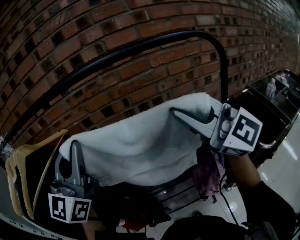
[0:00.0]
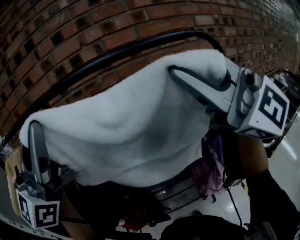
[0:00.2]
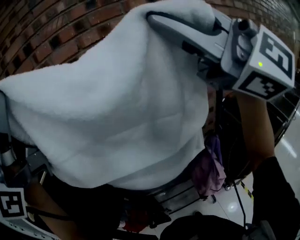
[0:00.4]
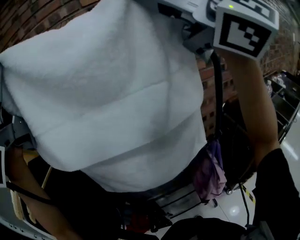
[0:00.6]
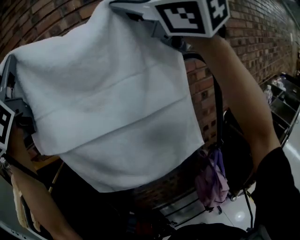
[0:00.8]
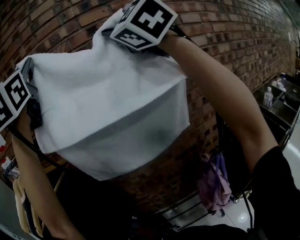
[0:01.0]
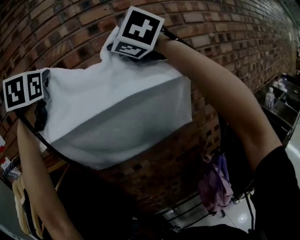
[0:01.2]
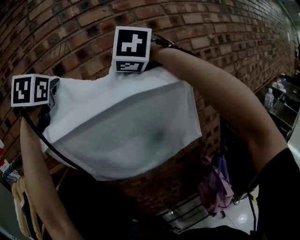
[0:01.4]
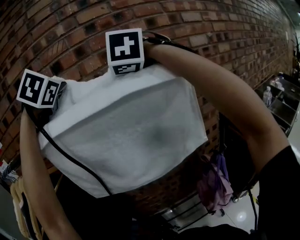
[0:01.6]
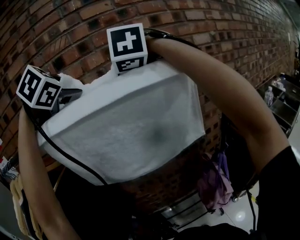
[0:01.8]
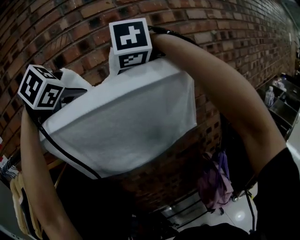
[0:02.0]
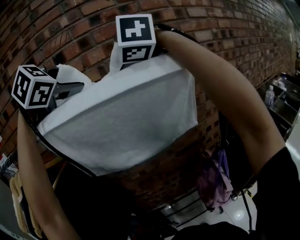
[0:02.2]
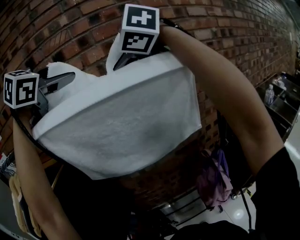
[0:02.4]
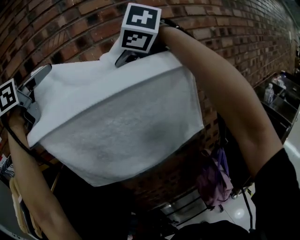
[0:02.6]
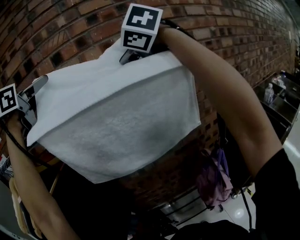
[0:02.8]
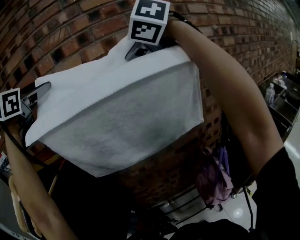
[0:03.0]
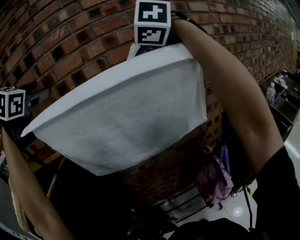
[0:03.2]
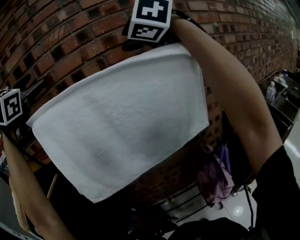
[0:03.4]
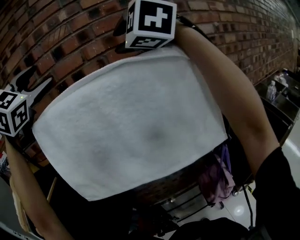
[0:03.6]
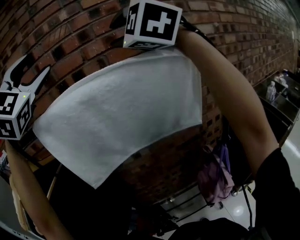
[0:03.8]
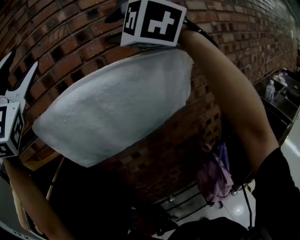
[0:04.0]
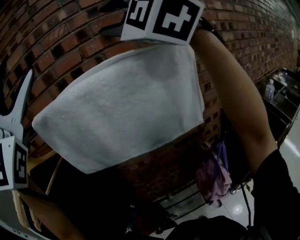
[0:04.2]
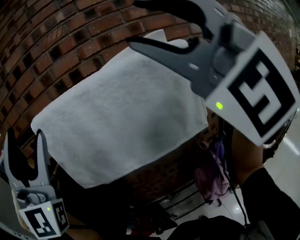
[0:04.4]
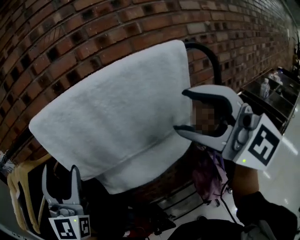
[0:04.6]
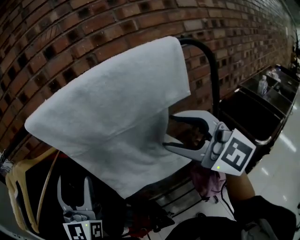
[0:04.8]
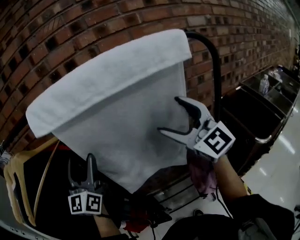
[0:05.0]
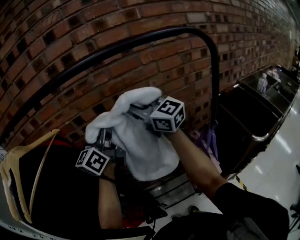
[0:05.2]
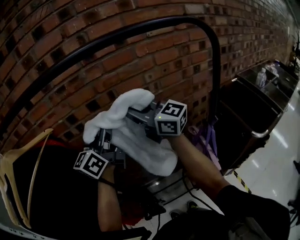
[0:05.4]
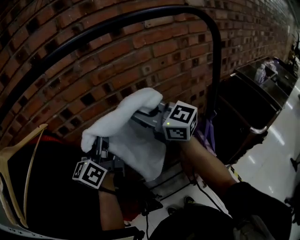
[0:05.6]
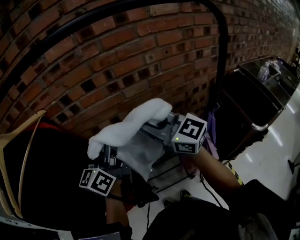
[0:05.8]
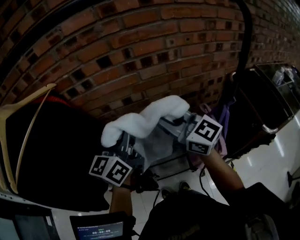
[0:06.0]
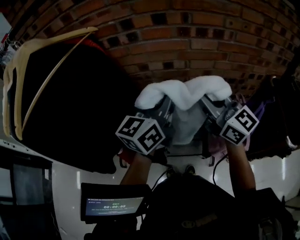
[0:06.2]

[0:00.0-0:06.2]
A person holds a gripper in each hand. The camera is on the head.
0:00.0 to 0:01.6: The grippers both shift forward and upward by about 25 cm. The right gripper tips its fingers downward by approximately 40 degrees. The left gripper tips its fingers downward by about 40 degrees.
0:01.6 to 0:03.2: The left gripper moves to the left, roughly 10 cm, and opens. Meanwhile the right gripper opens its fingers.
0:03.2 to 0:04.6: The right gripper goes about 30 cm backward, and tips its fingers upward by roughly 50 degrees; the left gripper travels backward and downward by some 30 cm, and points its fingers approximately 40 degrees further upward.
0:04.6 to 0:06.2: The left gripper heads downward and to the right, covering about 25 cm, rolls counterclockwise, seen from behind, by about 60 degrees, and closes; the right gripper shifts roughly 25 cm downward and forward, twists approximately 50 degrees clockwise, seen from behind, and closes its fingers.

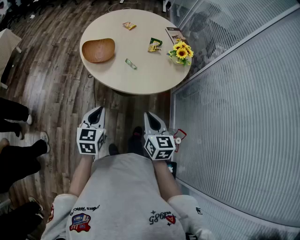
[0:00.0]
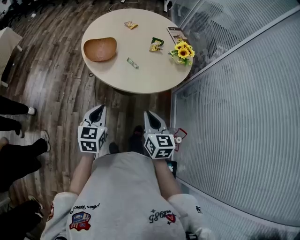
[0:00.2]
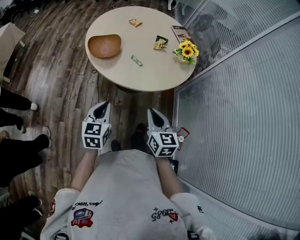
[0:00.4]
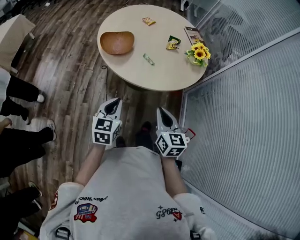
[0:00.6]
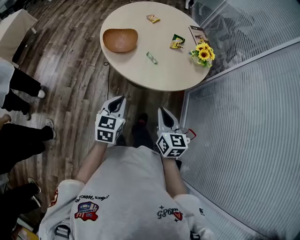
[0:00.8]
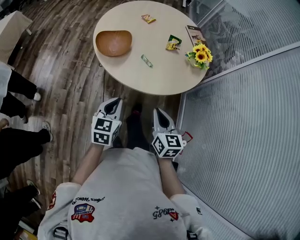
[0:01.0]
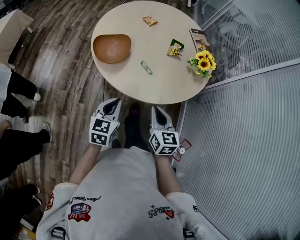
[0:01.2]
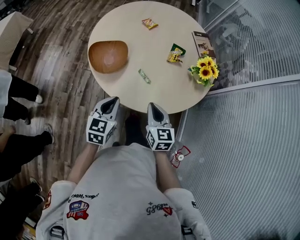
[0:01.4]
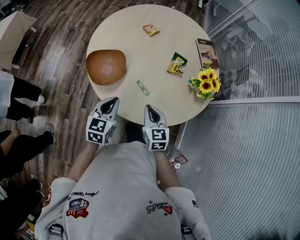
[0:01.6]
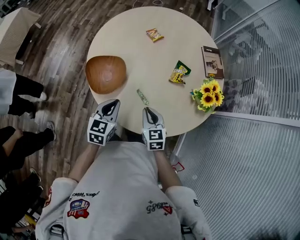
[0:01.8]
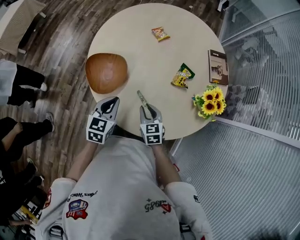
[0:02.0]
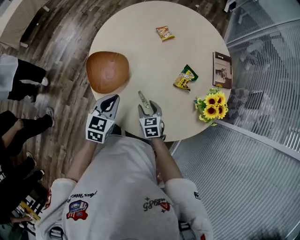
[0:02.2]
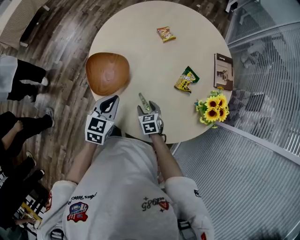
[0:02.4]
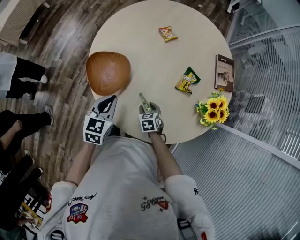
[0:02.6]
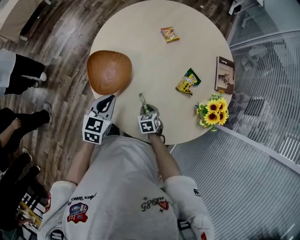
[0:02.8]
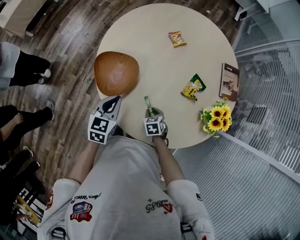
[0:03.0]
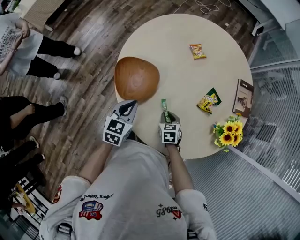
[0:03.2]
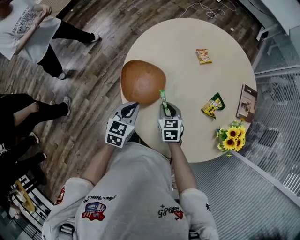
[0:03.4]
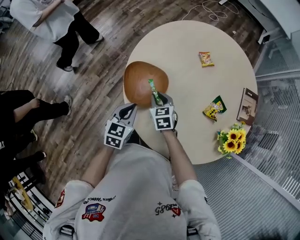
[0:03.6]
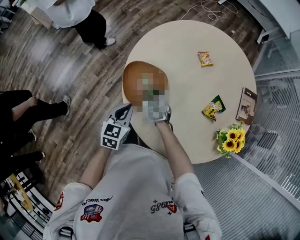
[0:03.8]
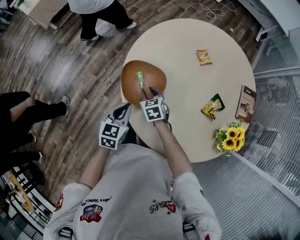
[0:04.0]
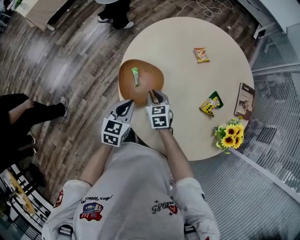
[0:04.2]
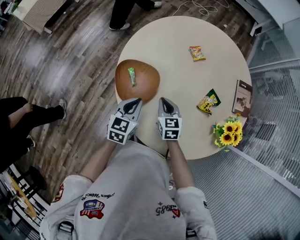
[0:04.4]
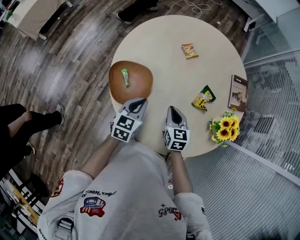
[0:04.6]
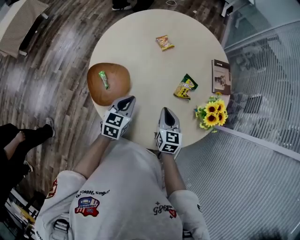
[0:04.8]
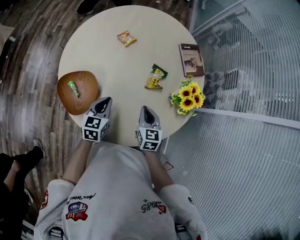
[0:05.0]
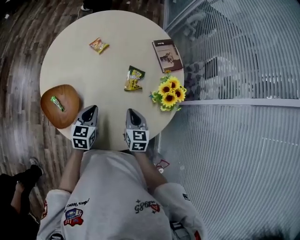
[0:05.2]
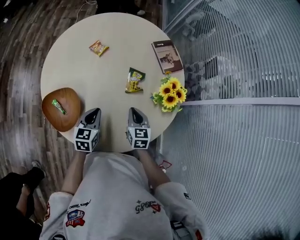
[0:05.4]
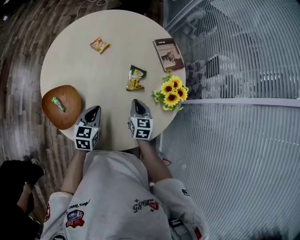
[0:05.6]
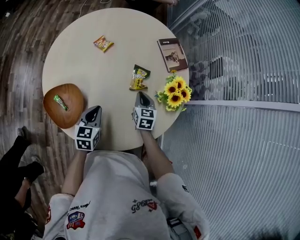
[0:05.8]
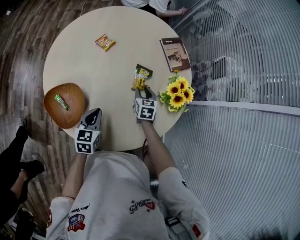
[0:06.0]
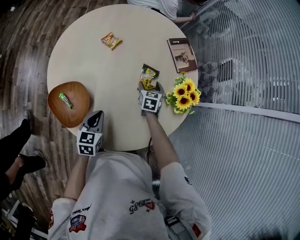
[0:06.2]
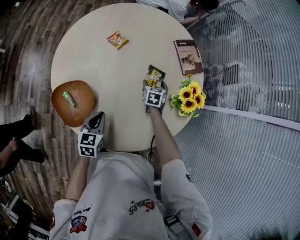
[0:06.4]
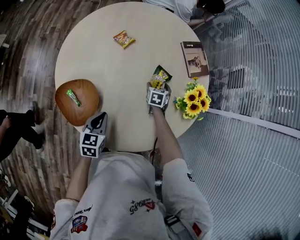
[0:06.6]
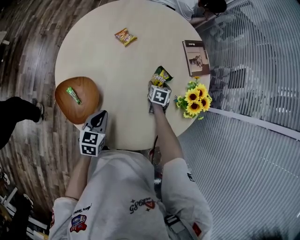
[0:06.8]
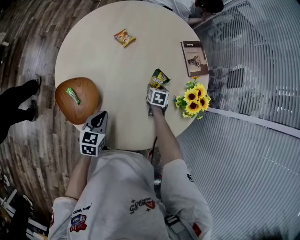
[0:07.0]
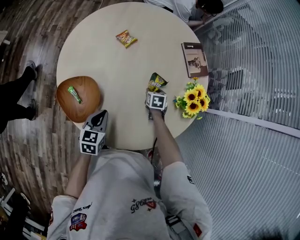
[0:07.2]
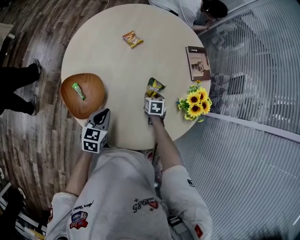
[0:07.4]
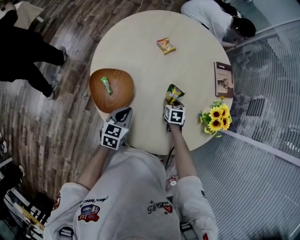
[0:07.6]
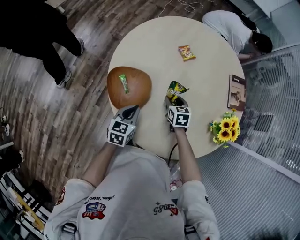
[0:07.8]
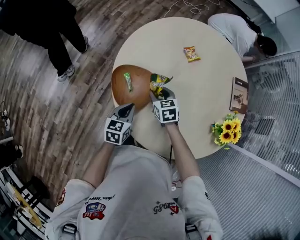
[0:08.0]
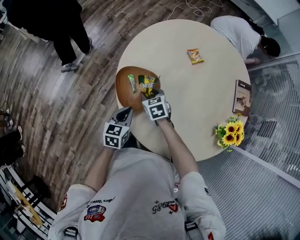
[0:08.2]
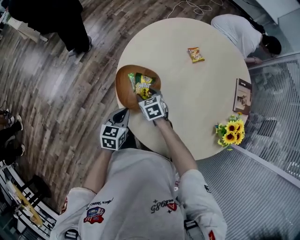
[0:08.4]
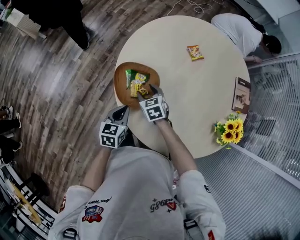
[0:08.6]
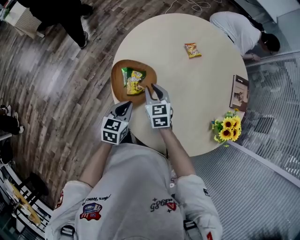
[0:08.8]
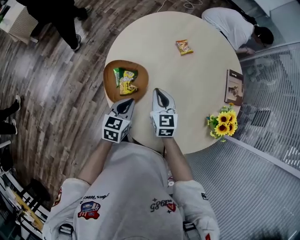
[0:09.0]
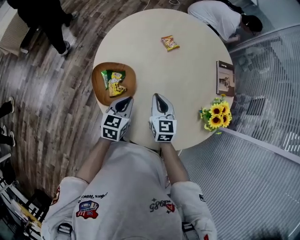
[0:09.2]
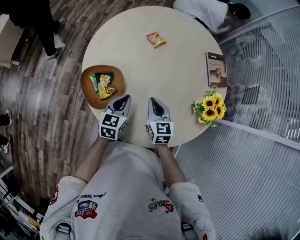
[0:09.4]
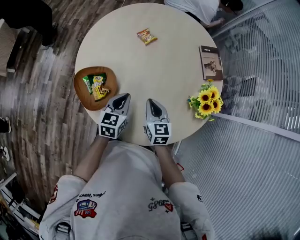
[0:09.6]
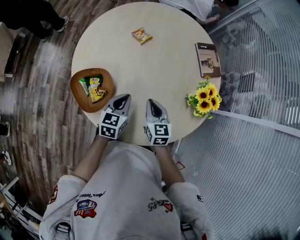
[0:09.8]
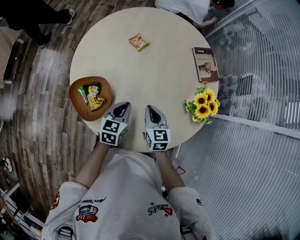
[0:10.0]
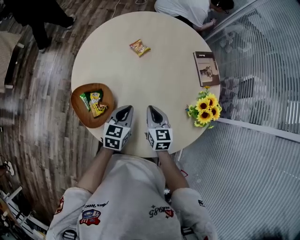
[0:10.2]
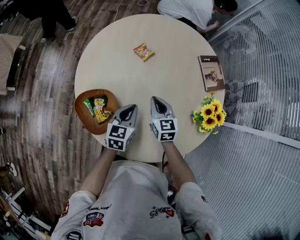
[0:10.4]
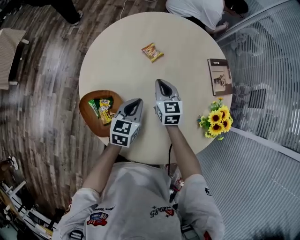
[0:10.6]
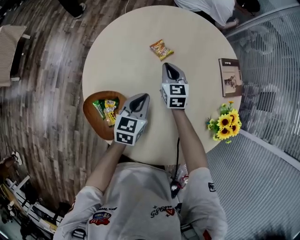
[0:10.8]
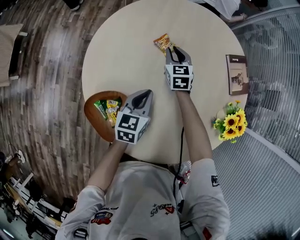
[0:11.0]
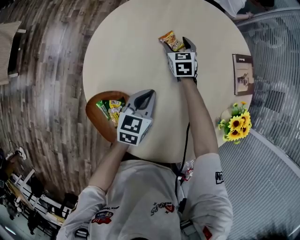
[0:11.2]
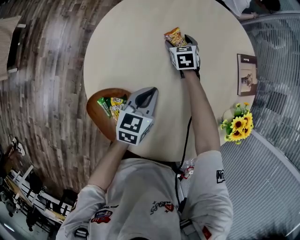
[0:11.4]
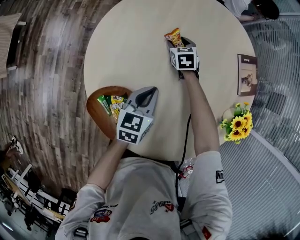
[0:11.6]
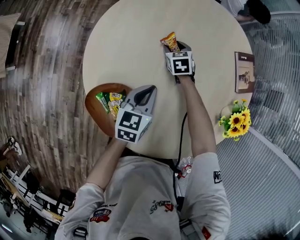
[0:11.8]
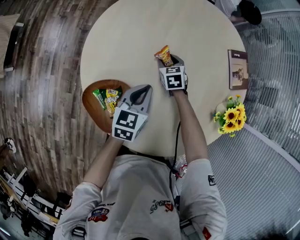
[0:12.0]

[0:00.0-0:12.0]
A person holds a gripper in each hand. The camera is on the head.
0:00.0 to 0:01.6: The grippers both shift forward by roughly 30 cm.
0:01.6 to 0:03.0: The left gripper is displaced forward by about 10 cm. Meanwhile the right gripper travels downward and forward by some 25 cm, points its fingers about 40 degrees further downward, and opens, then closes once more.
0:03.0 to 0:04.4: The right gripper travels upward and forward by approximately 20 cm, and swivels roughly 30 degrees.
0:04.4 to 0:06.0: The left gripper changes place by about 15 cm, and turns by approximately 20 degrees; the right gripper shifts by about 30 cm, and swivels roughly 40 degrees.
0:06.0 to 0:07.6: The right gripper heads to the left and downward, covering about 10 cm, swivels some 20 degrees, and opens and closes again. The left gripper heads to the left, covering about 5 cm.
0:07.6 to 0:09.0: The right gripper goes up and down, roughly 20 cm each way, reversing 2 times, tips its fingers upward by about 30 degrees, and closes.
0:09.0 to 0:10.4: Both grippers travel together to the right and forward, about 15 cm.
0:10.4 to 0:12.0: The left gripper travels forward and to the left by roughly 10 cm; the right gripper heads forward, downward and to the left, covering about 25 cm, swivels approximately 30 degrees, and opens.

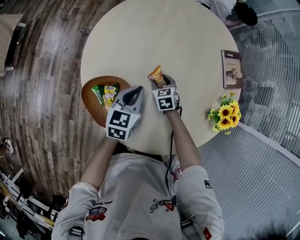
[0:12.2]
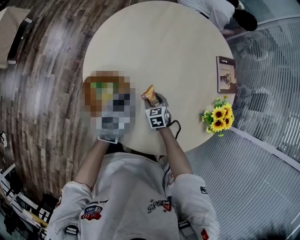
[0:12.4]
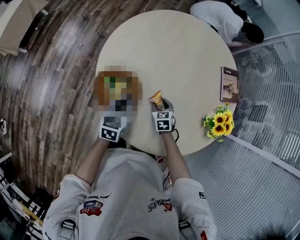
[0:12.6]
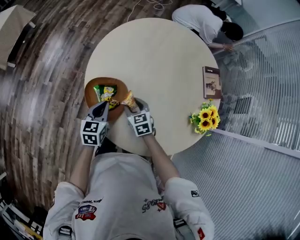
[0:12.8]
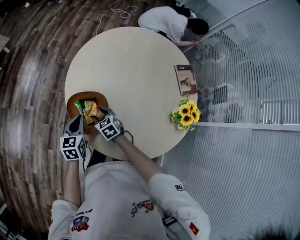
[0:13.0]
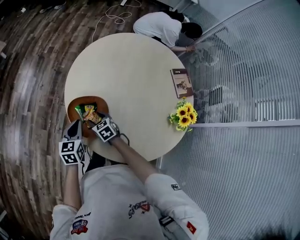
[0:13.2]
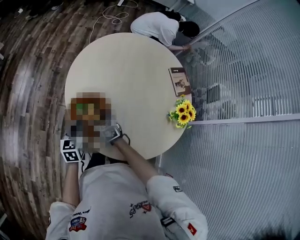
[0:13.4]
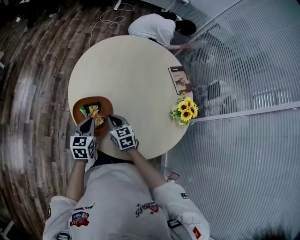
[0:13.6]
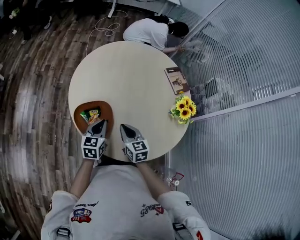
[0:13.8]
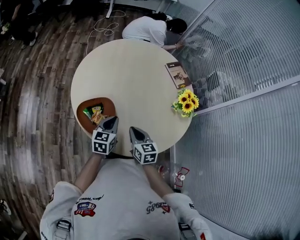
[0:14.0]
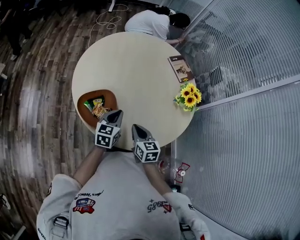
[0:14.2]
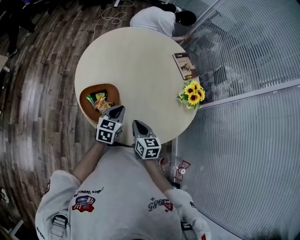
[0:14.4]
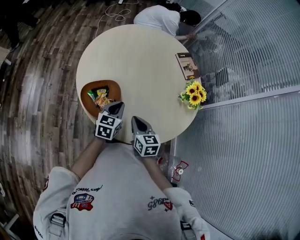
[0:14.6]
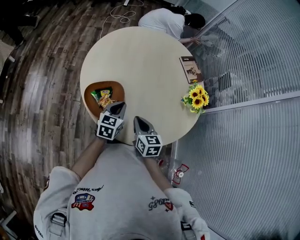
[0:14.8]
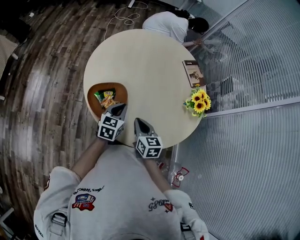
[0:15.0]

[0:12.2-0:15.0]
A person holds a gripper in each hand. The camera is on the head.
0:12.2 to 0:13.6: The right gripper heads upward, to the left and backward, covering some 25 cm, and closes. Meanwhile the left gripper shifts approximately 15 cm to the left and backward.
0:13.6 to 0:15.0: The right gripper moves backward and to the right, some 10 cm; the left gripper shifts approximately 10 cm to the right.

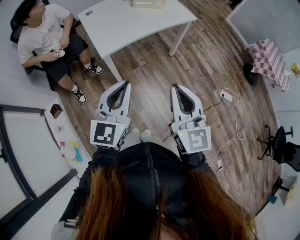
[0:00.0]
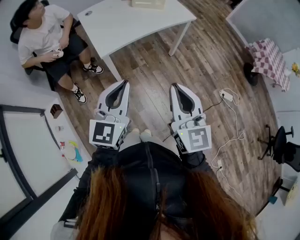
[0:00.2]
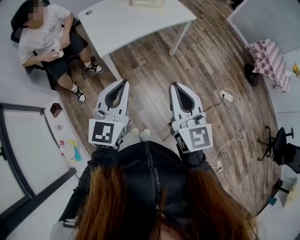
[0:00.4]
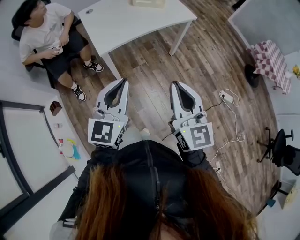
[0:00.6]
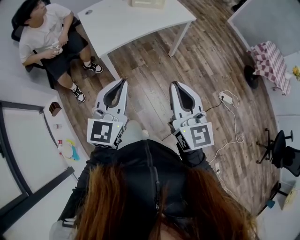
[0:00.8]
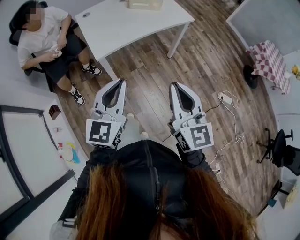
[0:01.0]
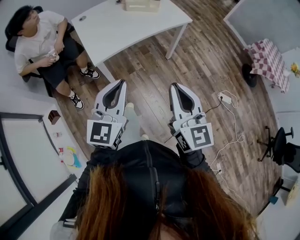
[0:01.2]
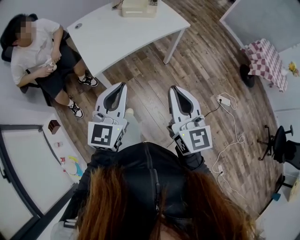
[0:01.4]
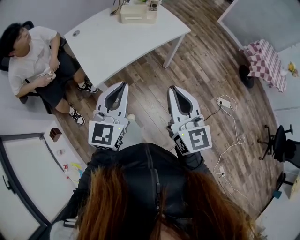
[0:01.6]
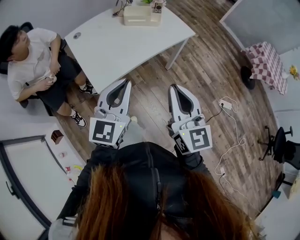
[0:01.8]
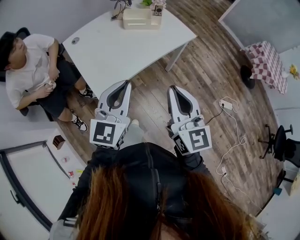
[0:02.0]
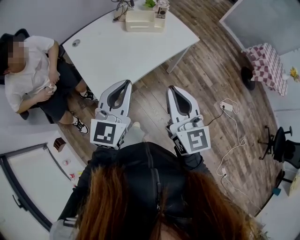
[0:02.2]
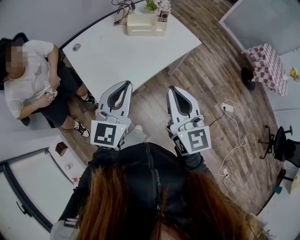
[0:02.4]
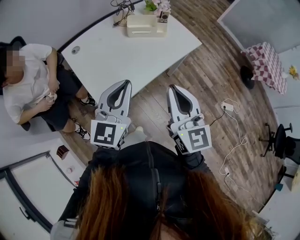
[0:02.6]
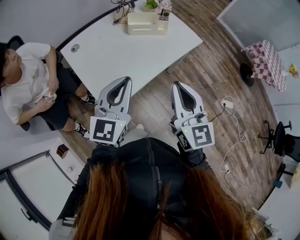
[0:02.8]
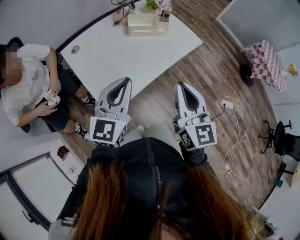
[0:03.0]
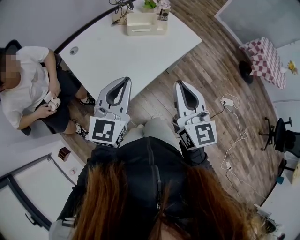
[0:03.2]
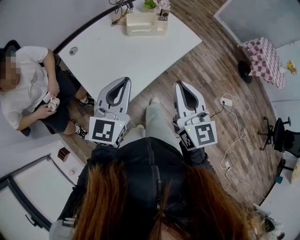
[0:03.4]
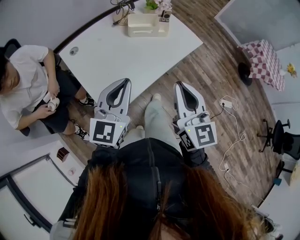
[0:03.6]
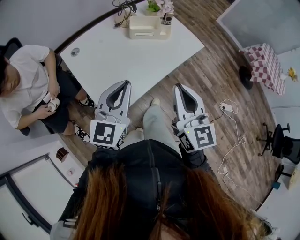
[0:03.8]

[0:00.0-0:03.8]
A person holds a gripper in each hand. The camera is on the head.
0:00.0 to 0:01.2: The left gripper changes place by some 5 cm. The right gripper changes place by some 5 cm.
0:01.2 to 0:02.6: The right gripper goes about 30 cm forward and to the left. Meanwhile the left gripper goes about 25 cm forward.
0:02.6 to 0:03.8: The grippers make only small movements.
